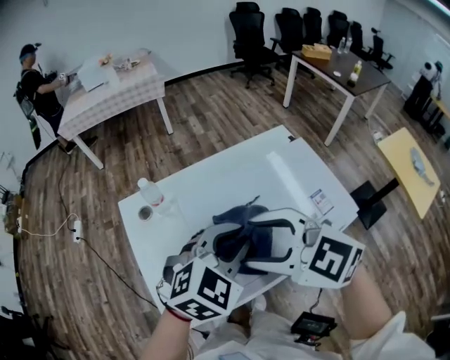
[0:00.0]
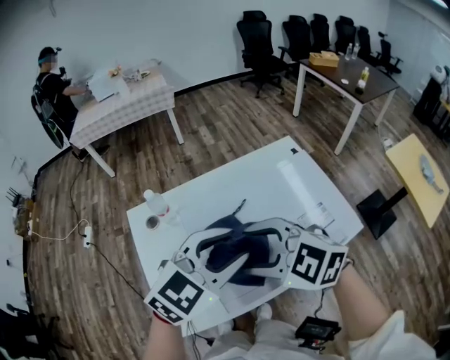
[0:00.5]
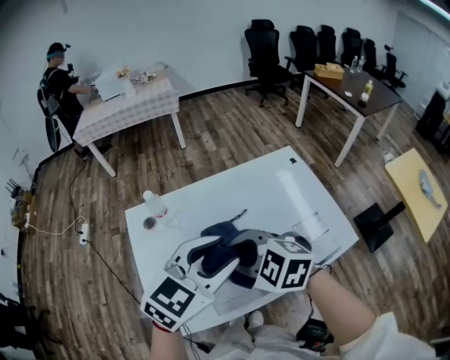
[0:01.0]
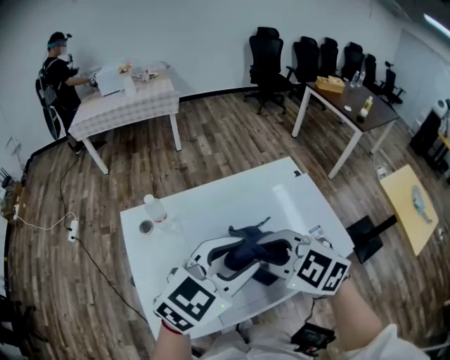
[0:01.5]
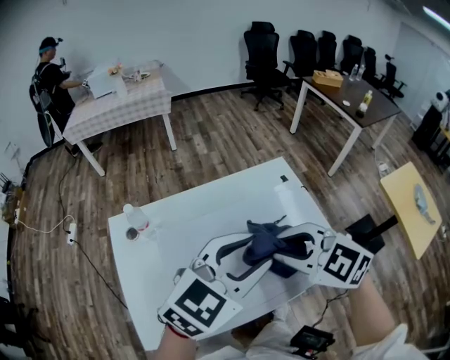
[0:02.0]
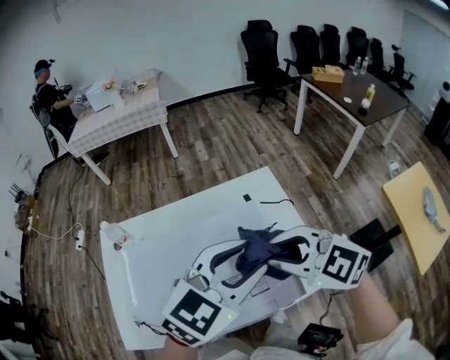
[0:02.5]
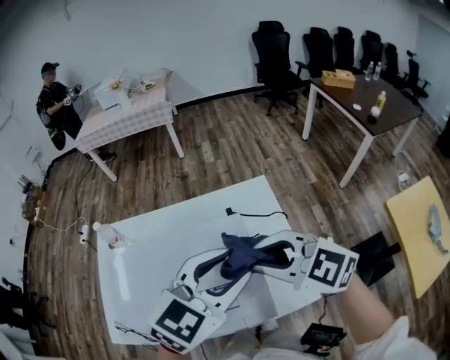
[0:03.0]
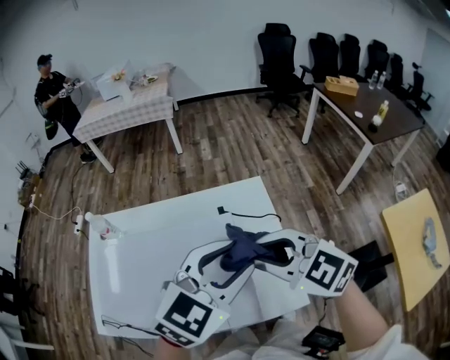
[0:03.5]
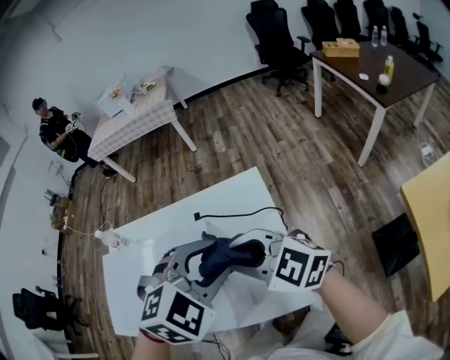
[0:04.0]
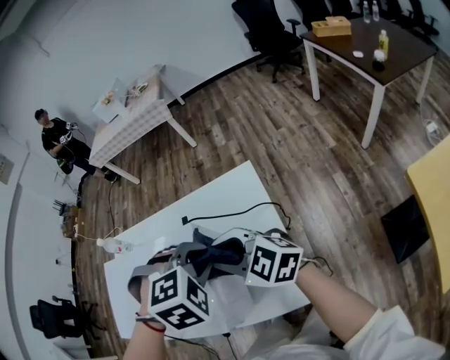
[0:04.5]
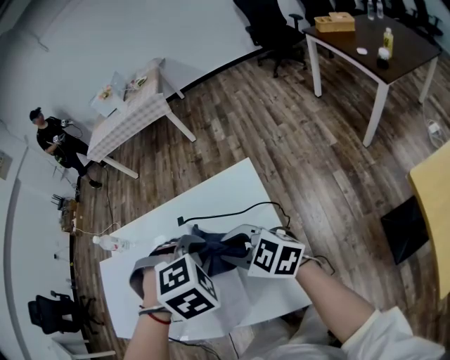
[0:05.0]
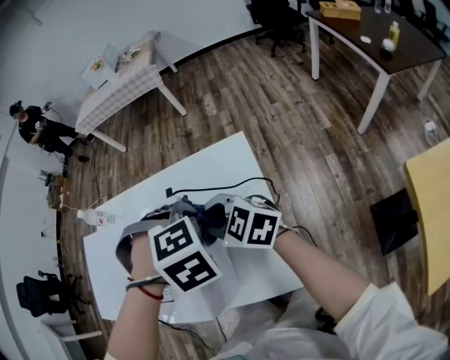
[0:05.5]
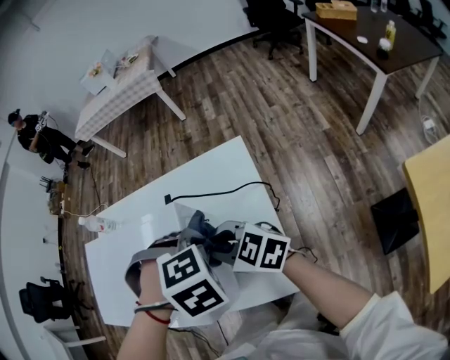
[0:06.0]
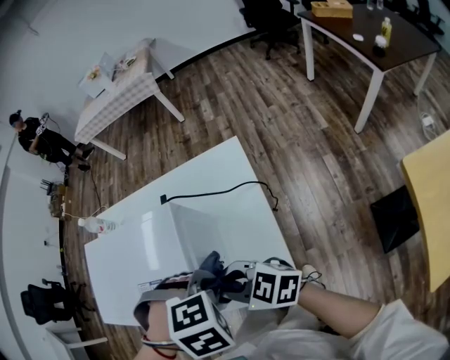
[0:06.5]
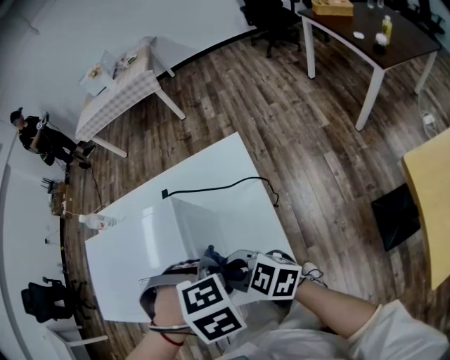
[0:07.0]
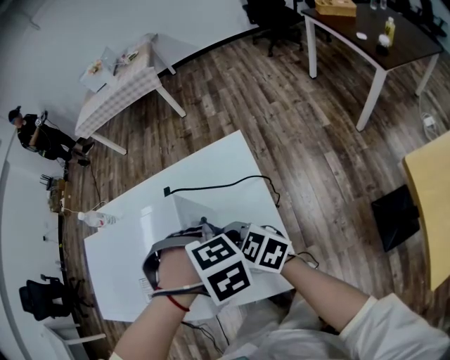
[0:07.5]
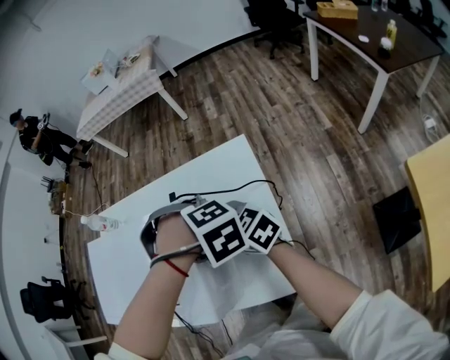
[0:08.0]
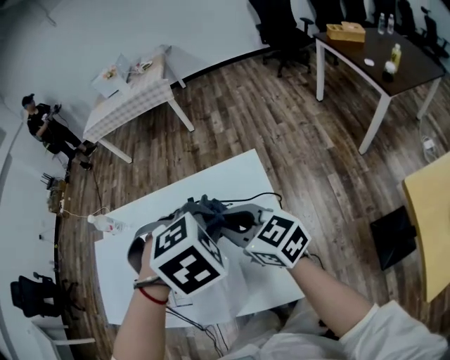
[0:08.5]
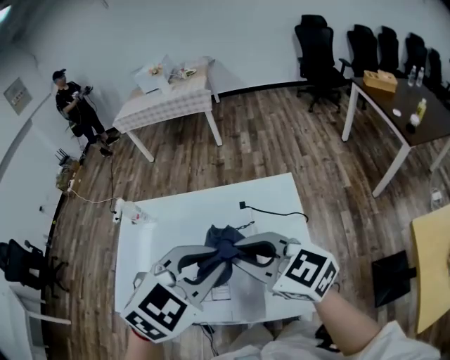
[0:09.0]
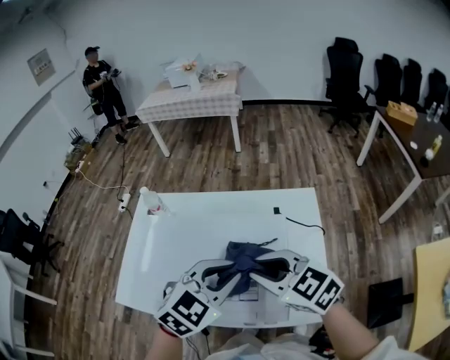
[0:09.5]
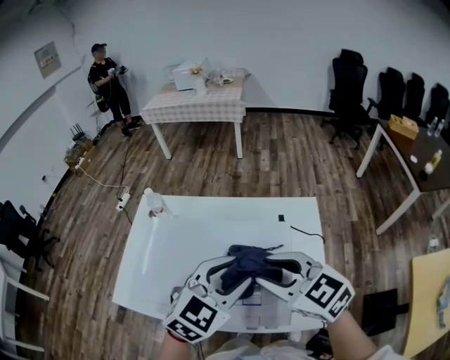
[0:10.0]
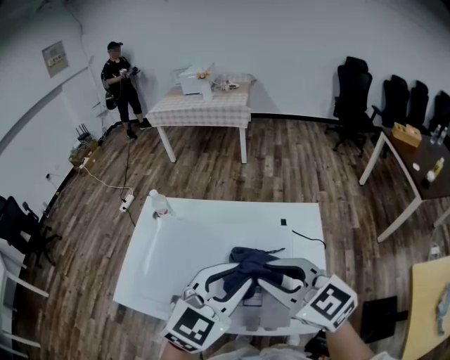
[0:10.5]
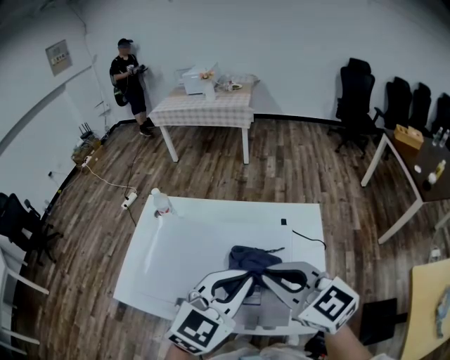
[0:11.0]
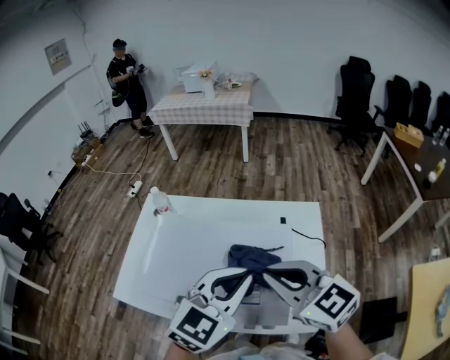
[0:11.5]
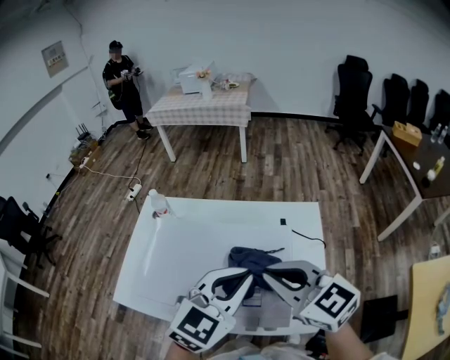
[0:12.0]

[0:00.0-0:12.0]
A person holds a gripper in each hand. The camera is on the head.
0:00.0 to 0:02.0: The left gripper moves to the right and upward, about 10 cm, changes its angle by approximately 20 degrees, and opens its fingers; the right gripper is displaced to the right and forward by roughly 15 cm, and closes its fingers.
0:02.0 to 0:04.0: The left gripper shifts by roughly 25 cm, and tilts its fingers approximately 30 degrees downward; the right gripper moves roughly 20 cm, and turns by about 30 degrees.
0:04.0 to 0:06.0: The two grippers go about 10 cm downward. The left gripper turns by roughly 40 degrees, and closes its fingers.
0:06.0 to 0:08.0: The left gripper changes place by approximately 5 cm. The right gripper shifts by some 10 cm.
0:08.0 to 0:10.0: The right gripper goes roughly 15 cm upward, and swivels some 20 degrees, while the left gripper shifts by approximately 25 cm, points its fingers about 50 degrees further upward, and opens its fingers.
0:10.0 to 0:12.0: The left gripper closes. Meanwhile the right gripper closes up.

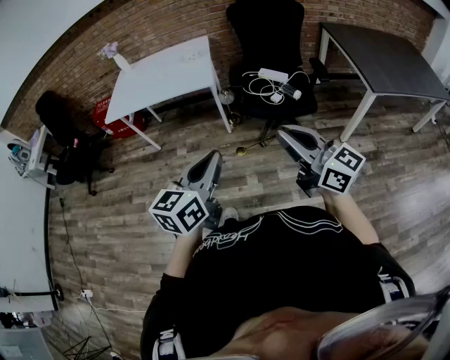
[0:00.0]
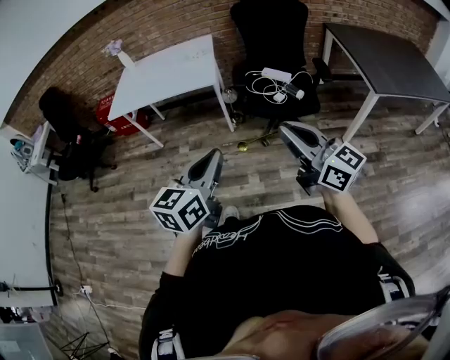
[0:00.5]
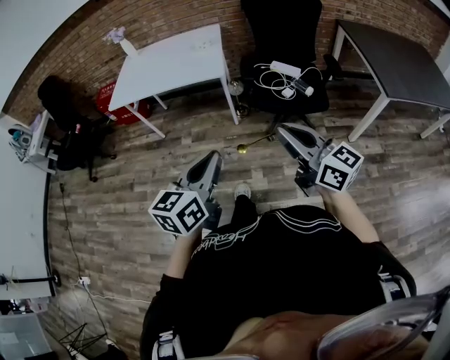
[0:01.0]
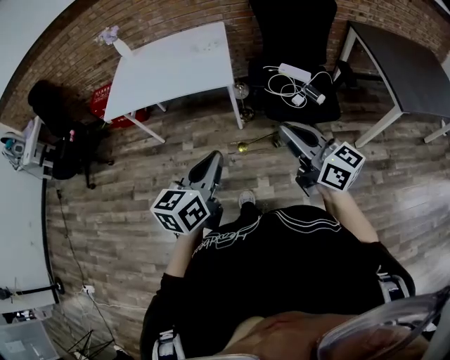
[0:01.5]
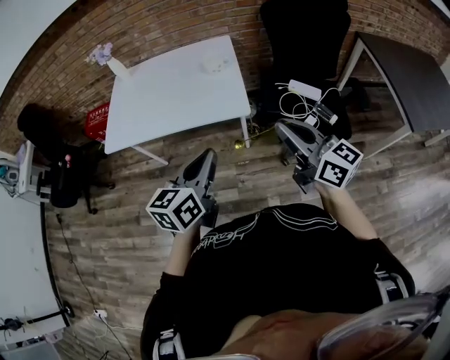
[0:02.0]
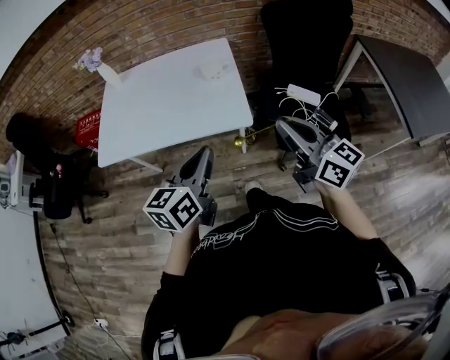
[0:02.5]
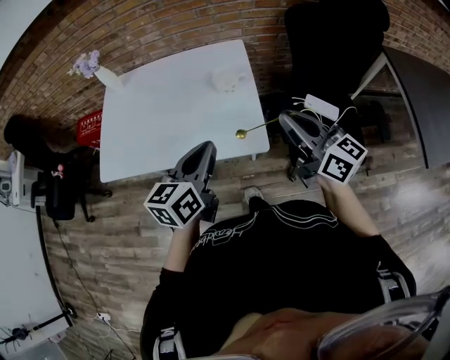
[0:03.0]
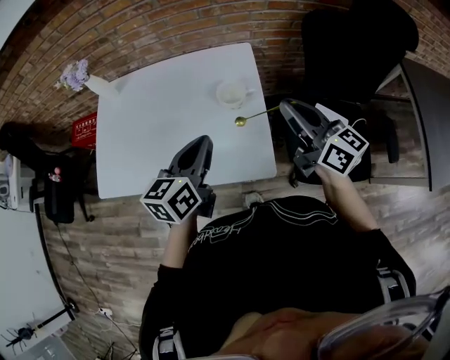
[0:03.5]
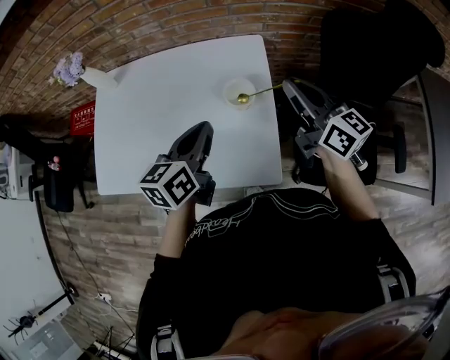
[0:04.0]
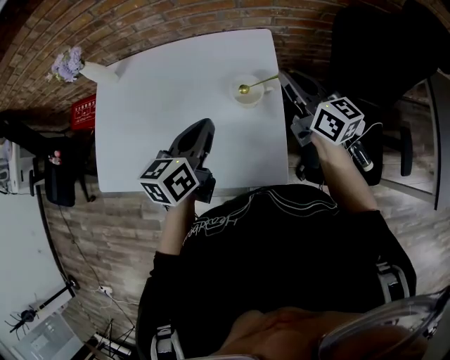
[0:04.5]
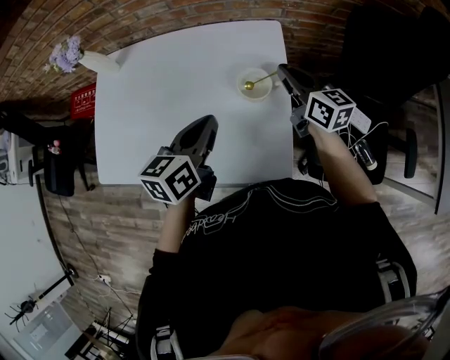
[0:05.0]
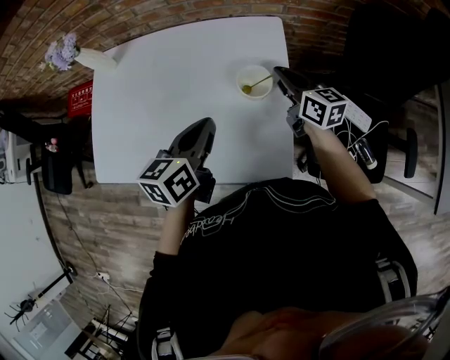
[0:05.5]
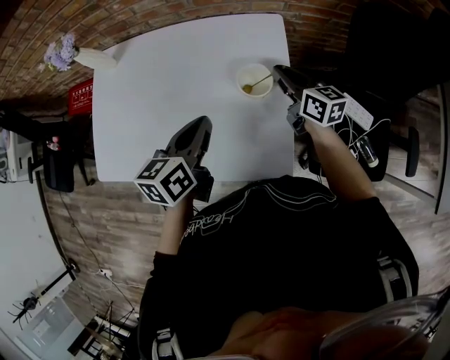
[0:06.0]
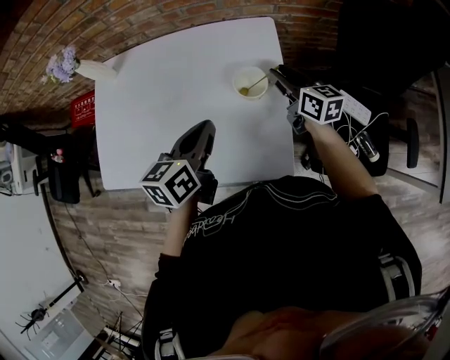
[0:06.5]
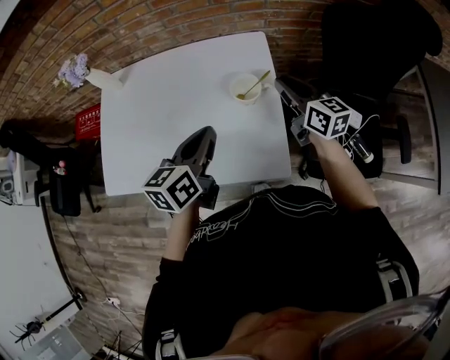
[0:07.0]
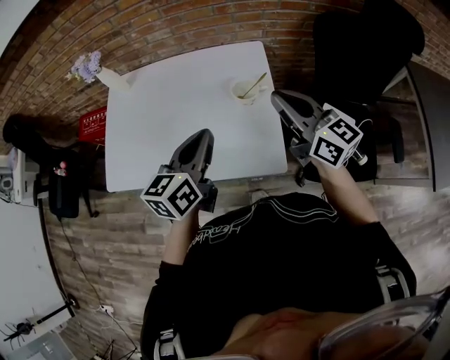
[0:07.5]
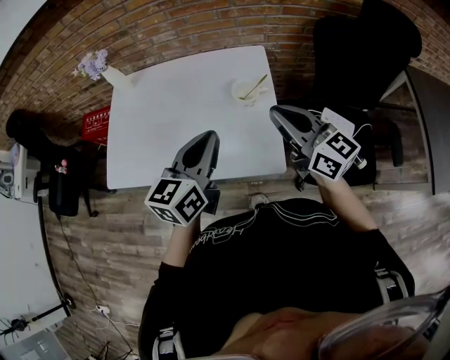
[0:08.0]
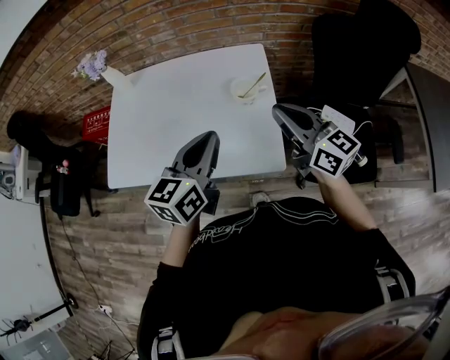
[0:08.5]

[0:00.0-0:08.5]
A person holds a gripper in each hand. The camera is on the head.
0:00.0 to 0:02.0: The pair of grippers is taken forward, about 40 cm.
0:02.0 to 0:04.0: Both grippers are carried forward, approximately 50 cm.
0:04.0 to 0:06.5: The left gripper shifts by approximately 5 cm; the right gripper heads downward and forward, covering approximately 20 cm, and opens its fingers.
0:06.5 to 0:08.5: The right gripper moves backward and upward, roughly 30 cm, changes its angle by some 20 degrees, and closes, while the left gripper goes some 15 cm backward and upward.

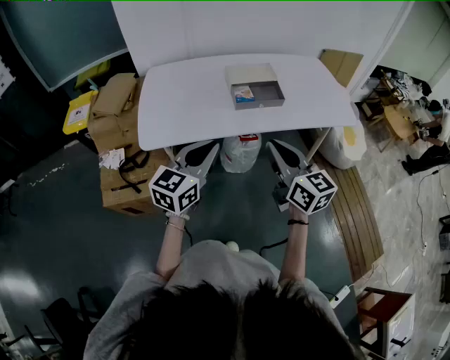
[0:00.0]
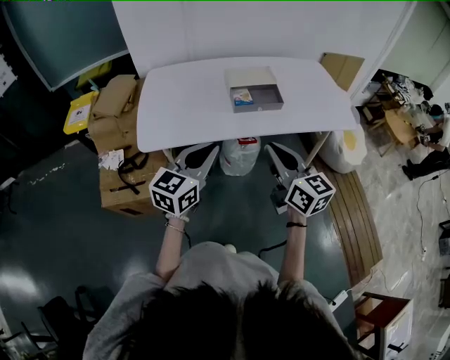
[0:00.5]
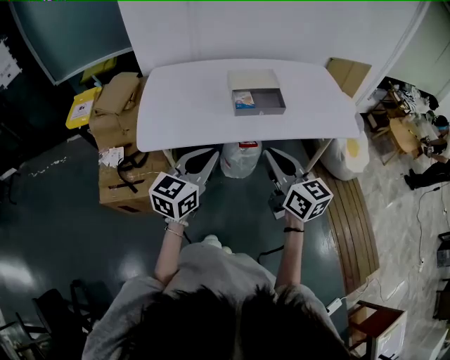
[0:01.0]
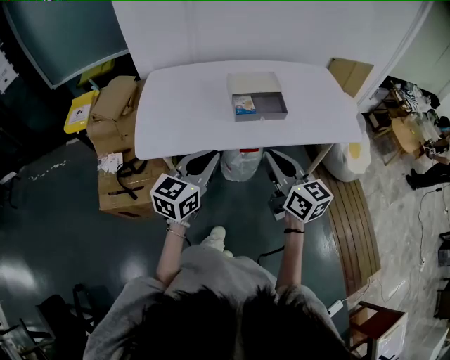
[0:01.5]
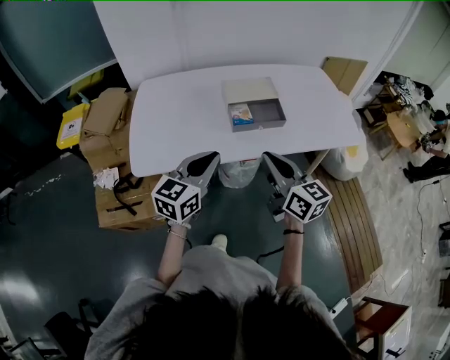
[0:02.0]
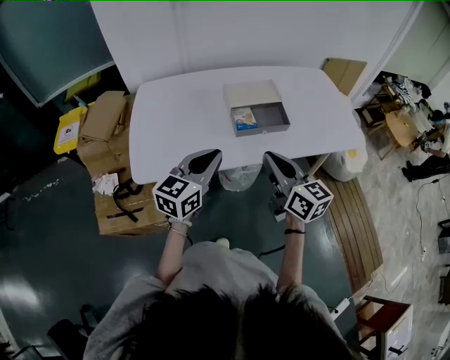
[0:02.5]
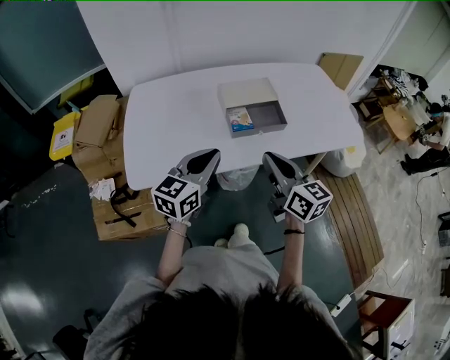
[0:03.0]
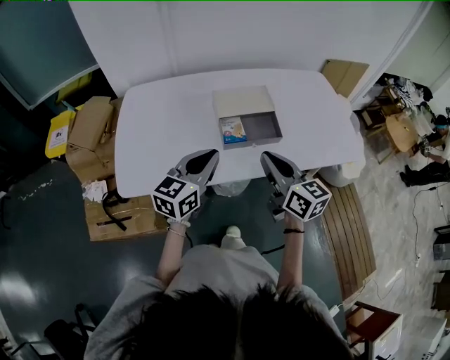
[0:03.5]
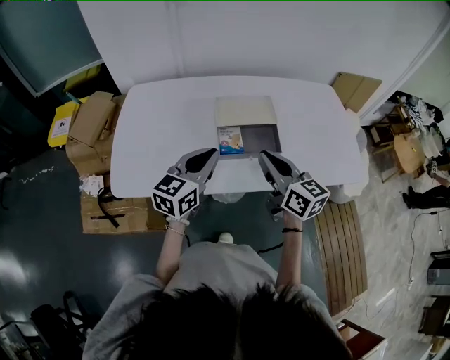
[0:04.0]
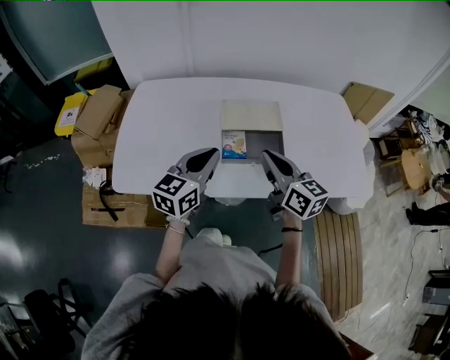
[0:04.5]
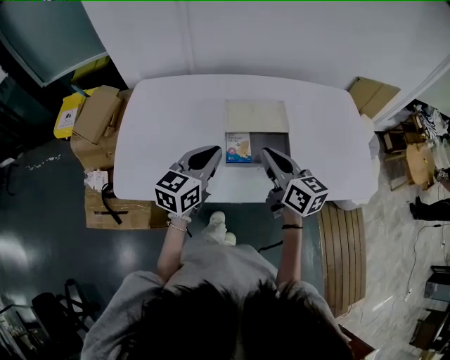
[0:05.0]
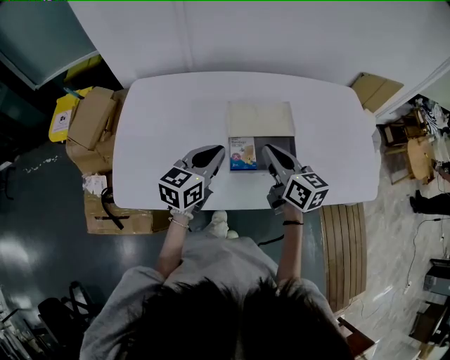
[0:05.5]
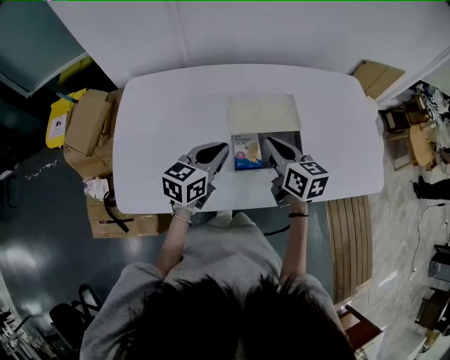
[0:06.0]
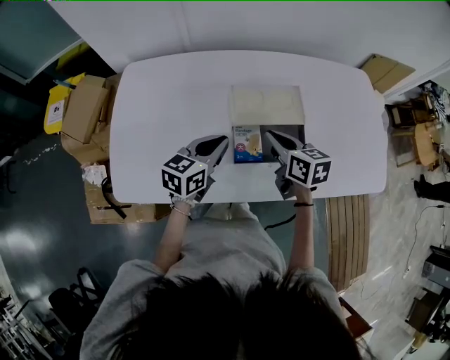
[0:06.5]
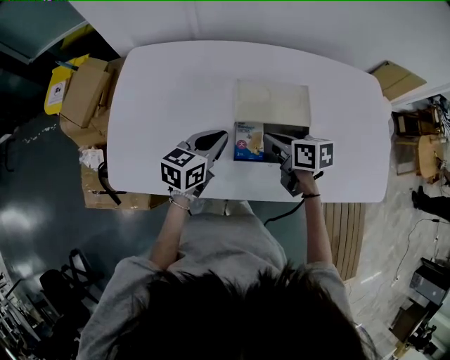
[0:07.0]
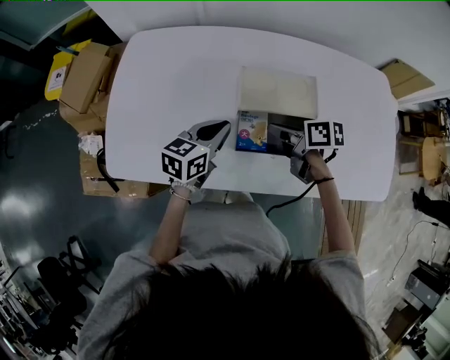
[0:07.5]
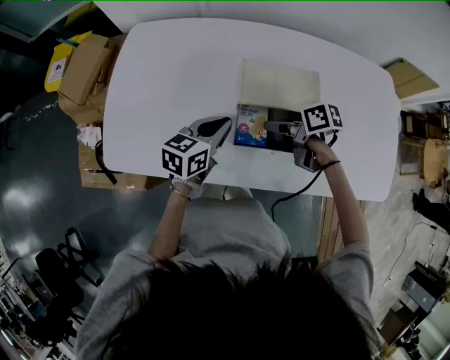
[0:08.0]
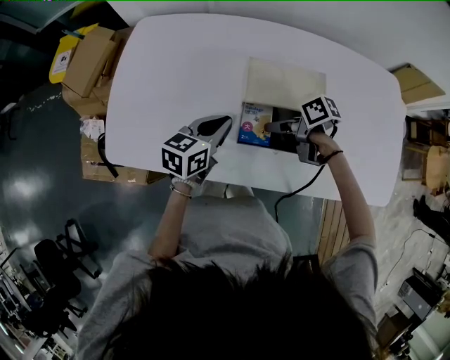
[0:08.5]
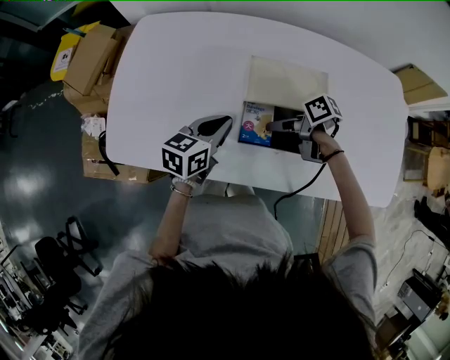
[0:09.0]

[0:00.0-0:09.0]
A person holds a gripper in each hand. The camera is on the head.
0:00.0 to 0:02.0: Both grippers travel together forward, about 10 cm.
0:02.0 to 0:04.5: Both grippers move forward, about 20 cm.
0:04.5 to 0:07.0: Both grippers travel together downward and forward, roughly 20 cm. The right gripper angles its fingers downward, by some 30 degrees. The left gripper swivels roughly 20 degrees.
0:07.0 to 0:09.0: The right gripper goes about 5 cm downward, swivels roughly 40 degrees, and opens its fingers.
